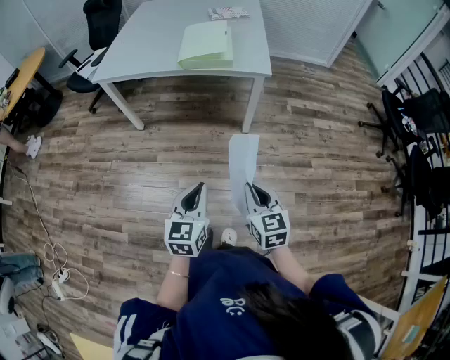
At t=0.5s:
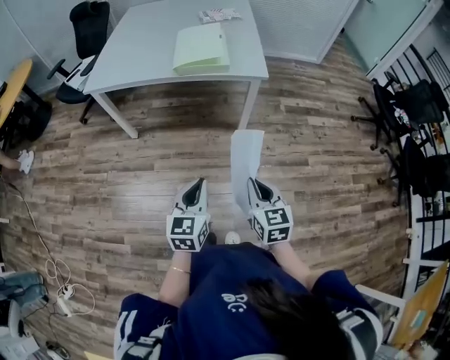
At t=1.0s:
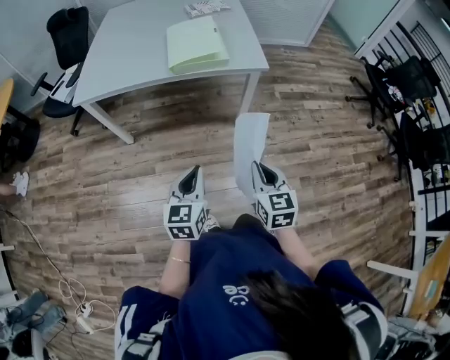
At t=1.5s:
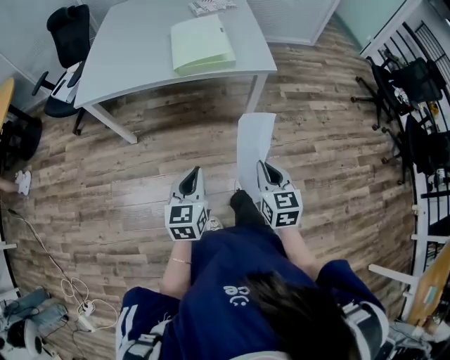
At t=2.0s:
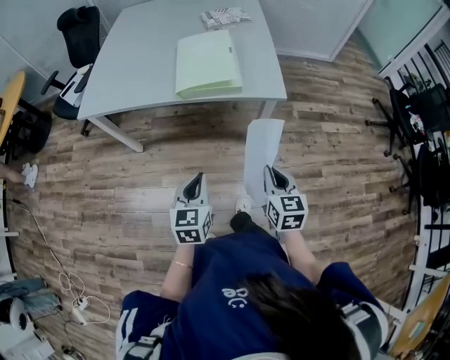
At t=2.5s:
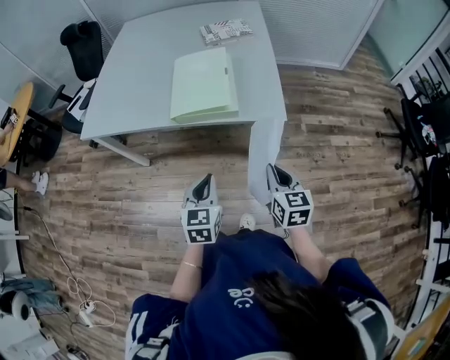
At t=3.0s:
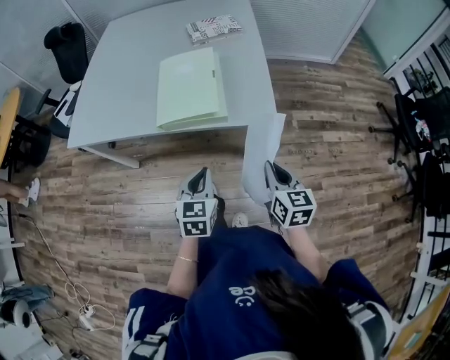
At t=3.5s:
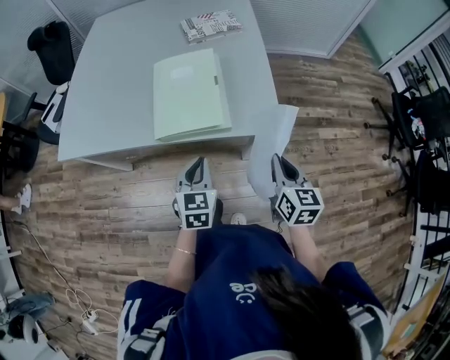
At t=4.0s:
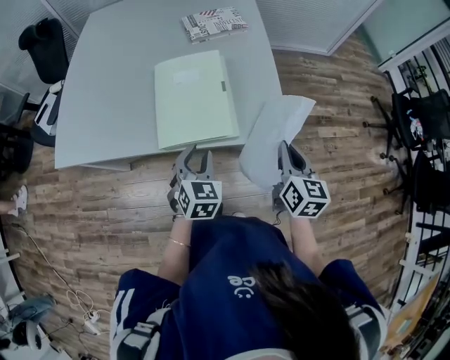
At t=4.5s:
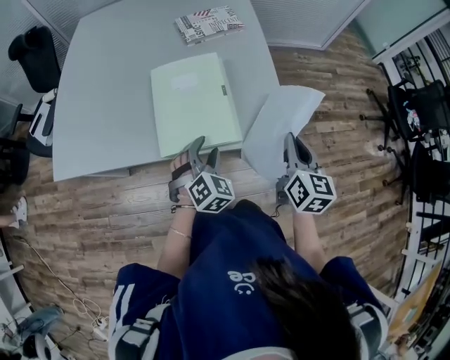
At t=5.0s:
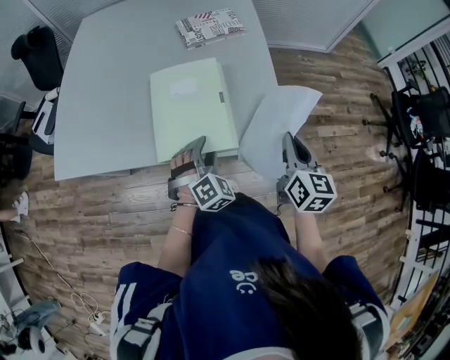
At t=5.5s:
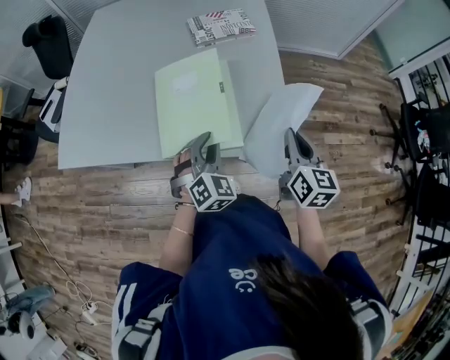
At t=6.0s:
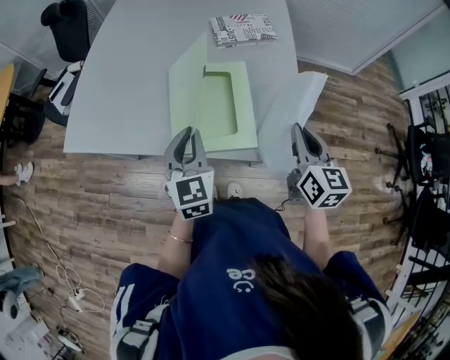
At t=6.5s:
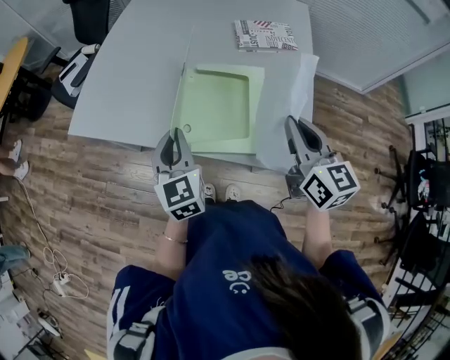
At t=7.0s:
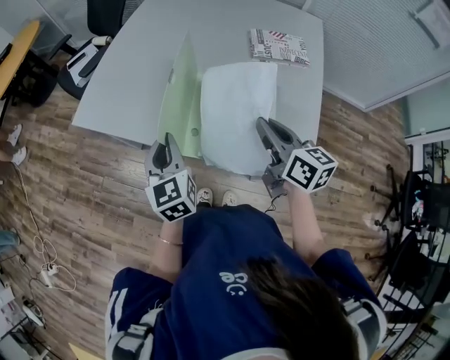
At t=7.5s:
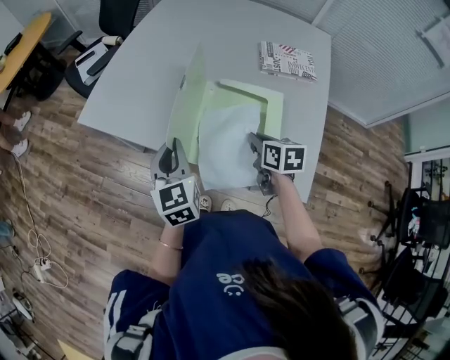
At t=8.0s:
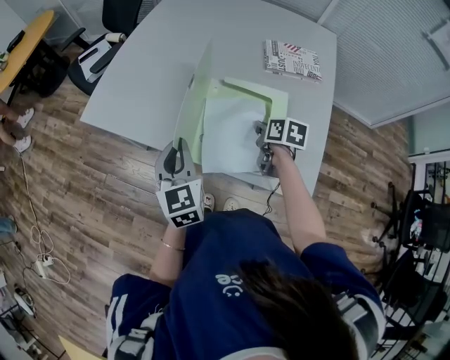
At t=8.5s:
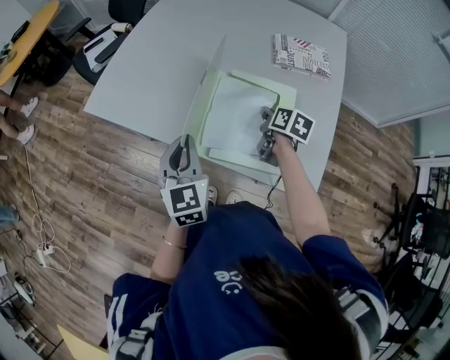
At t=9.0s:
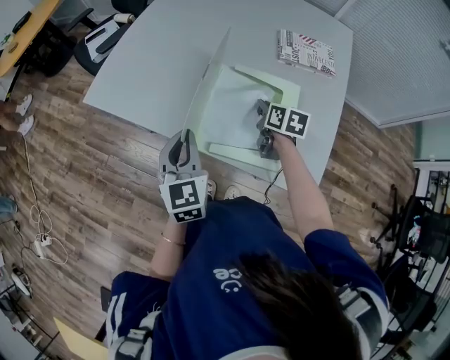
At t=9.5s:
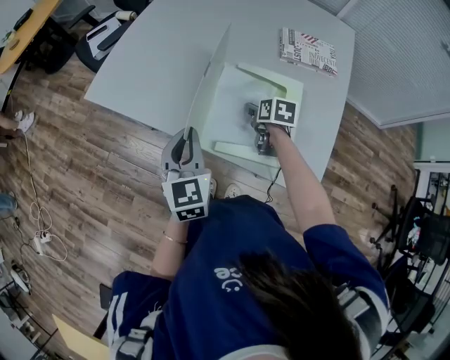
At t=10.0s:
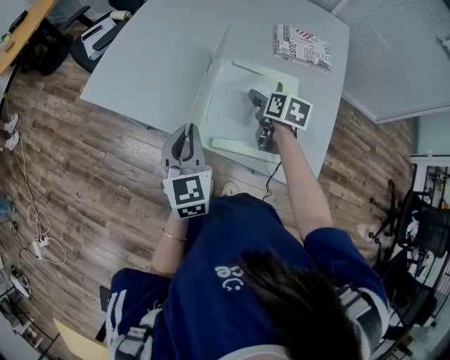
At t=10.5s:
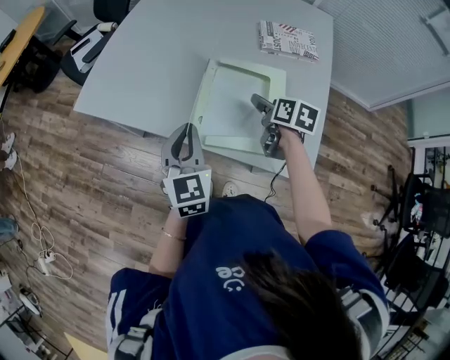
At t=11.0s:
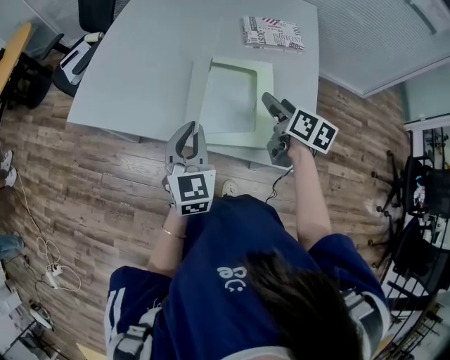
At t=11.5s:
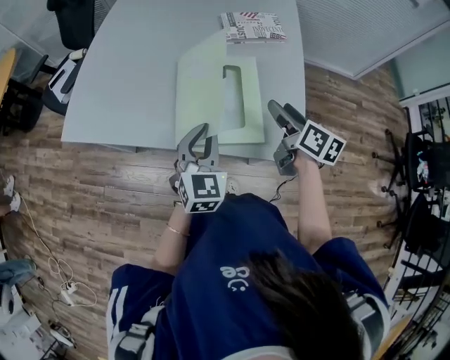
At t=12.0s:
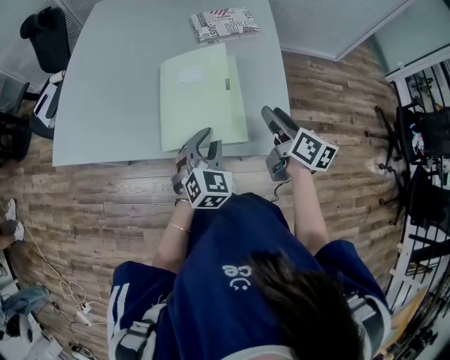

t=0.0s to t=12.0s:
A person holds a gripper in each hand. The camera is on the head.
t=0.0s to t=2.0s: The grippers both shift forward by approximately 25 cm.
t=2.0s to t=4.0s: Both grippers travel together forward, roughly 30 cm. The left gripper swivels roughly 20 degrees, and opens its fingers.
t=4.0s to t=6.0s: The left gripper travels upward, forward and to the left by about 15 cm, swivels some 30 degrees, and closes its fingers, while the right gripper moves forward and upward, about 15 cm.
t=6.0s to t=8.0s: The right gripper ends up about 25 cm from where it was, and angles its fingers downward, by approximately 30 degrees; the left gripper moves roughly 15 cm, and swivels approximately 20 degrees.
t=8.0s to t=10.0s: The right gripper opens.
t=10.0s to t=12.0s: The right gripper travels backward, to the right and upward by approximately 25 cm, and swivels some 30 degrees. Meanwhile the left gripper heads to the right, covering approximately 20 cm, and swivels some 40 degrees.

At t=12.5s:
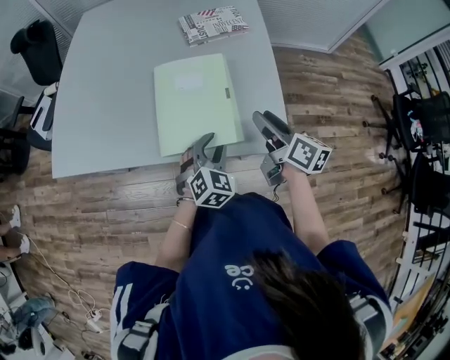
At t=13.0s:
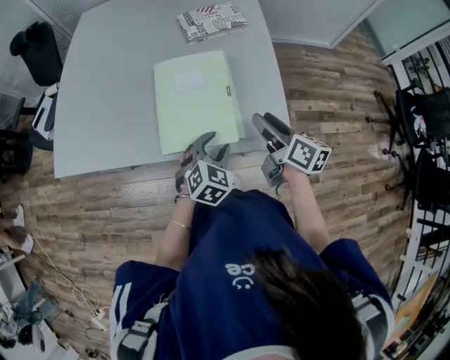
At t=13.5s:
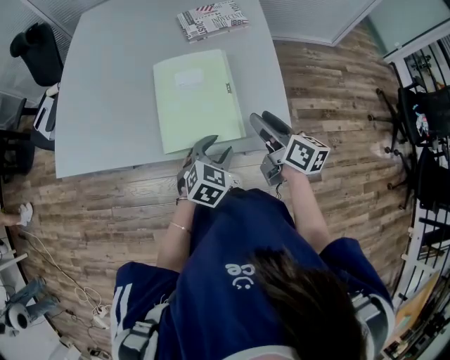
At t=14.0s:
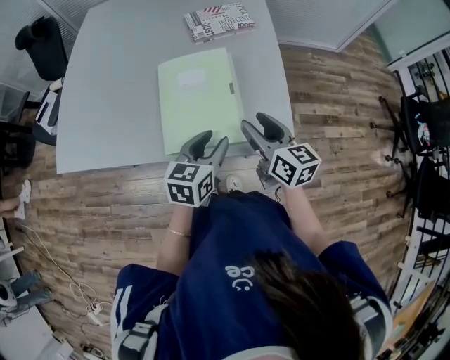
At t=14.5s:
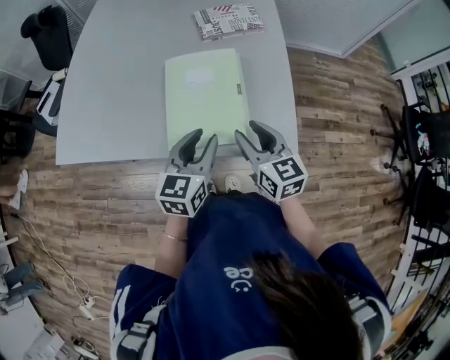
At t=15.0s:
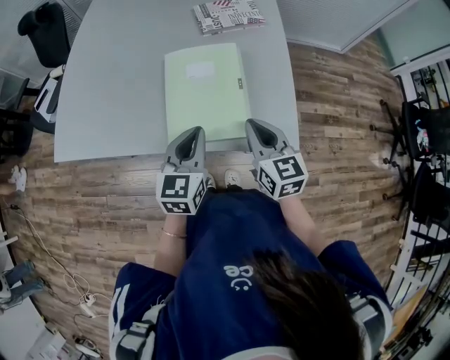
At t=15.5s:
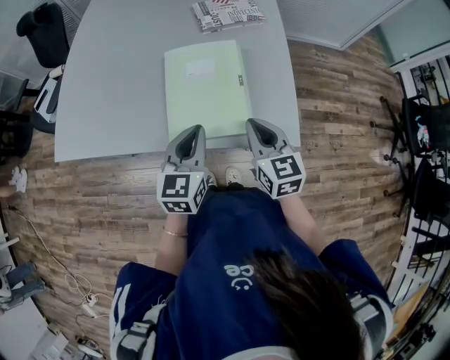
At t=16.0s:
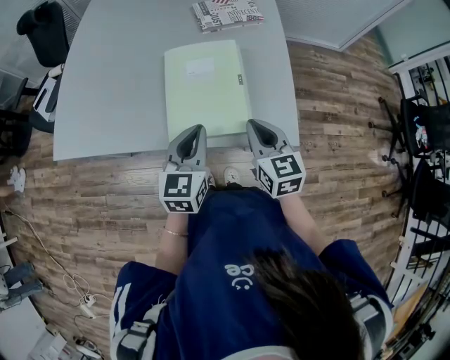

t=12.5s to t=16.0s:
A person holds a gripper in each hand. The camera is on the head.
t=12.5s to t=14.5s: The left gripper goes approximately 10 cm upward and to the left, and swivels some 40 degrees, while the right gripper travels to the left by some 5 cm, and turns by approximately 40 degrees.
t=14.5s to t=16.0s: The left gripper closes. Meanwhile the right gripper closes up.

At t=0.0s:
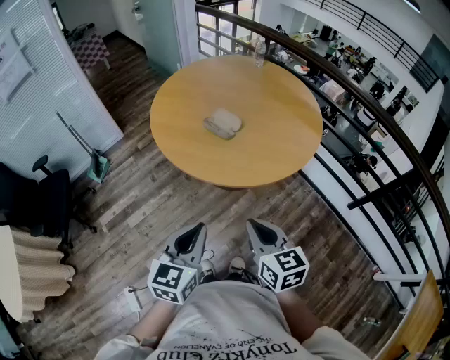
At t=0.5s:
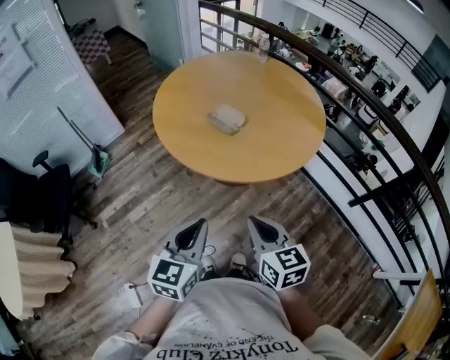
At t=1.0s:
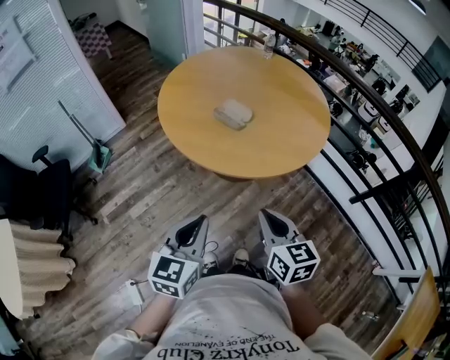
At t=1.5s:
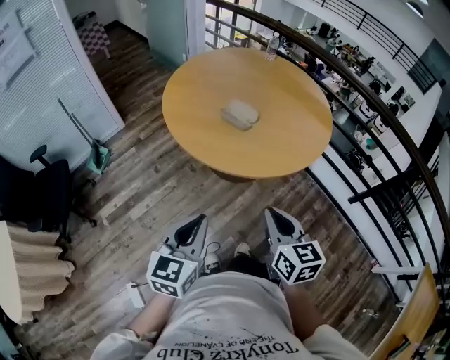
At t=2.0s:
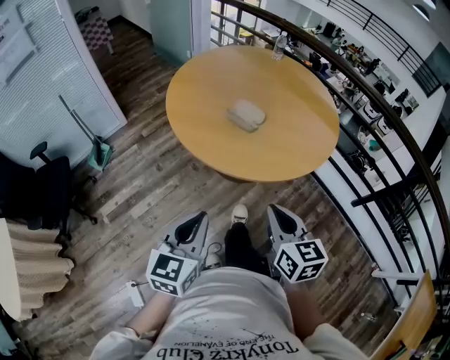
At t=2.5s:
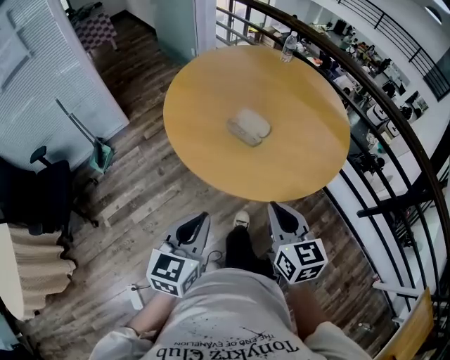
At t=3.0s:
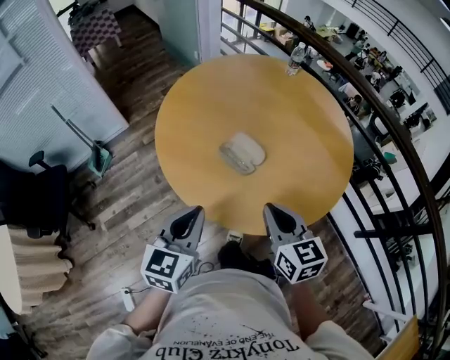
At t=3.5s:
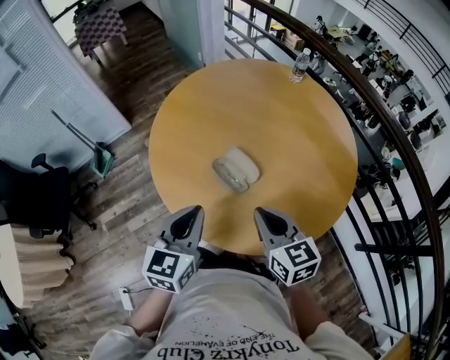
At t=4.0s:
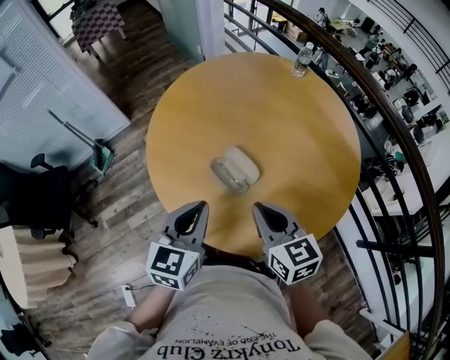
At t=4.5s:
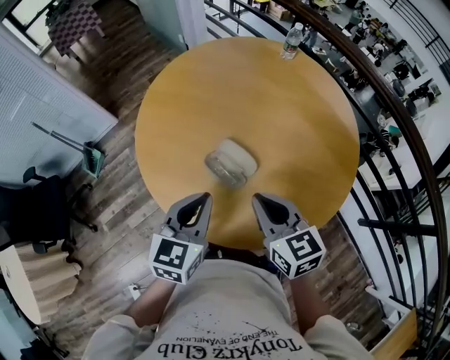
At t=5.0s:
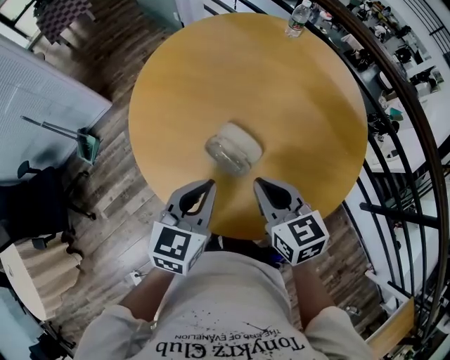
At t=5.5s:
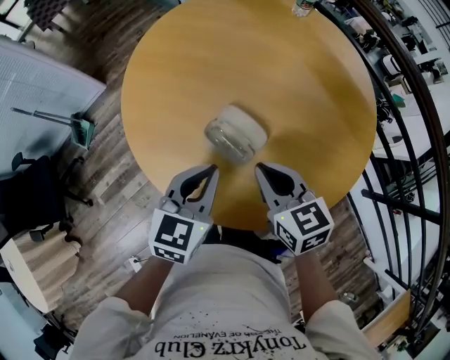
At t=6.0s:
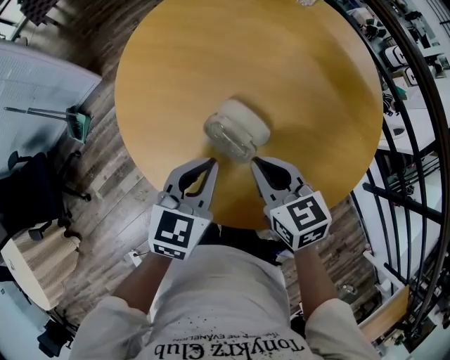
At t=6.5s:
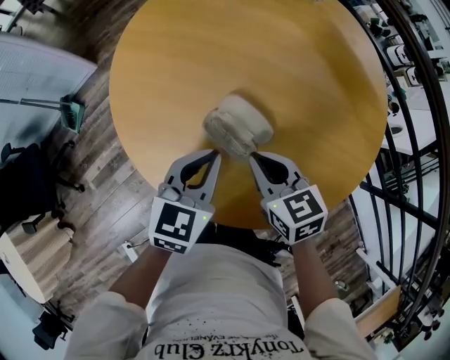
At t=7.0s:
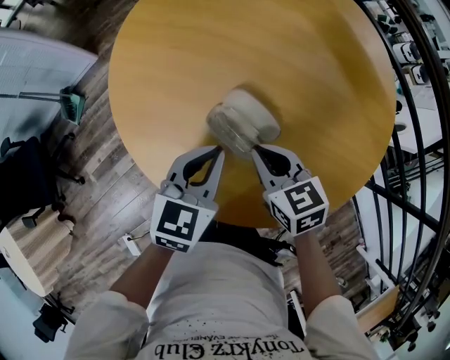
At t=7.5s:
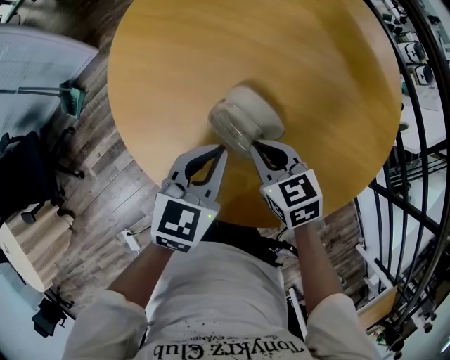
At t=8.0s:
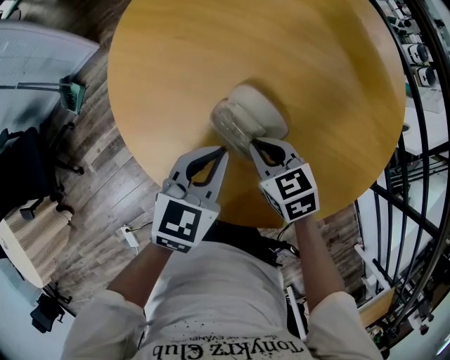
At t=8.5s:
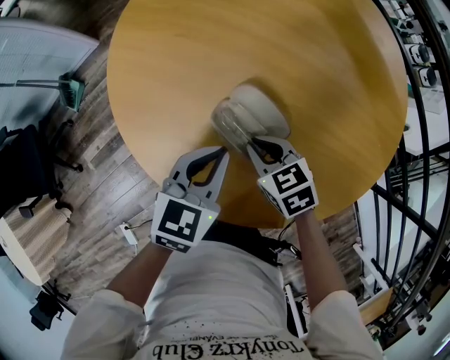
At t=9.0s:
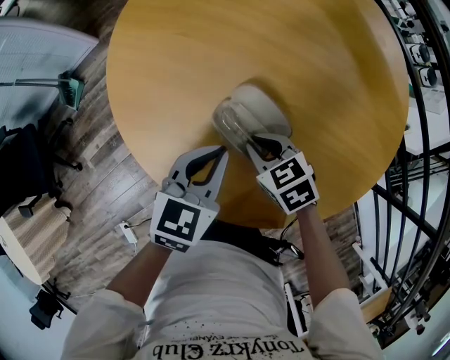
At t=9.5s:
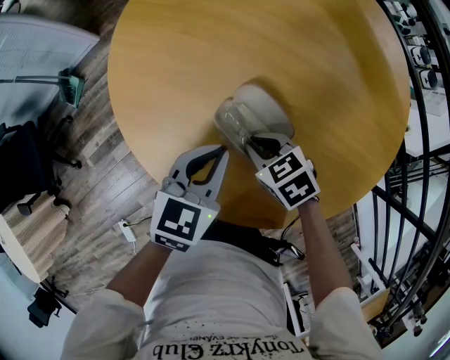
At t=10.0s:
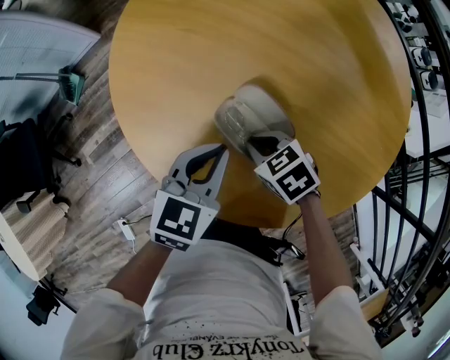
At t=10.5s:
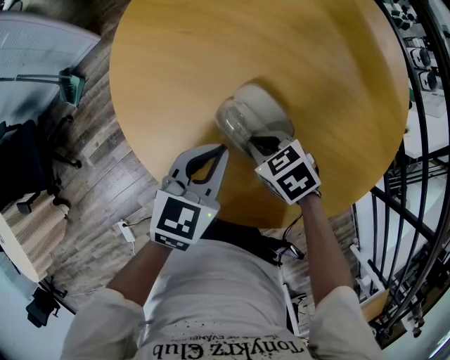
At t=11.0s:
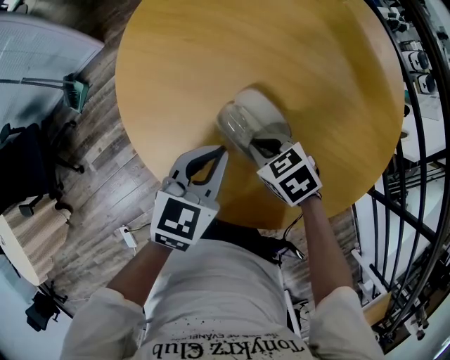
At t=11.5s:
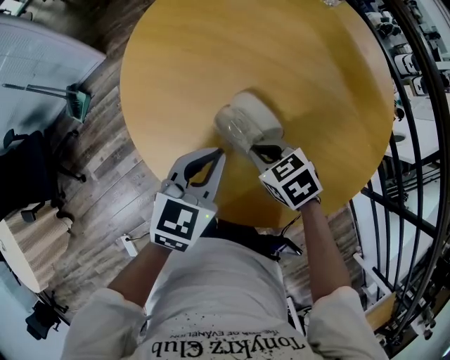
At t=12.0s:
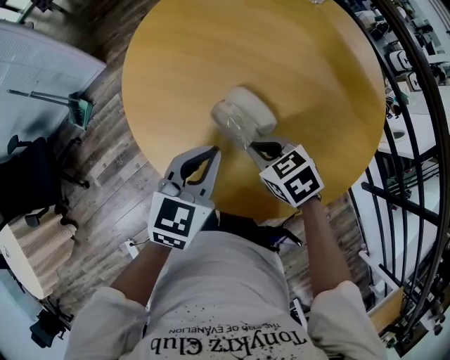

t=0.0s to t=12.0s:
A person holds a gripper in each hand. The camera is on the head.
t=0.0s to t=2.0s: The left gripper travels to the left by approximately 10 cm, while the right gripper moves to the left, approximately 5 cm.
t=2.0s to t=4.0s: Both grippers travel together forward, about 35 cm. The right gripper rotates about 20 degrees.
t=4.0s to t=6.0s: Both grippers travel together downward and forward, roughly 15 cm.
t=6.0s to t=8.0s: The right gripper shifts roughly 10 cm downward. Meanwhile the left gripper heads downward, covering approximately 5 cm.
t=8.0s to t=10.0s: The right gripper rotates about 20 degrees.
t=10.0s to t=12.0s: The grippers both shift upward by roughly 10 cm.
